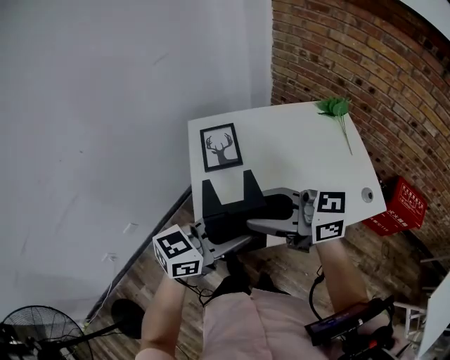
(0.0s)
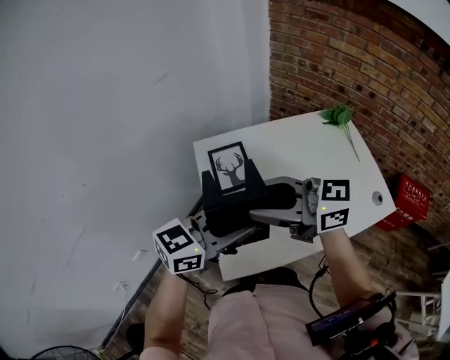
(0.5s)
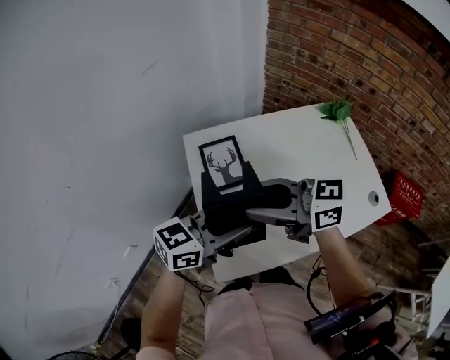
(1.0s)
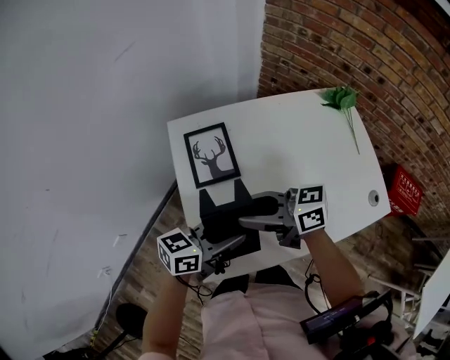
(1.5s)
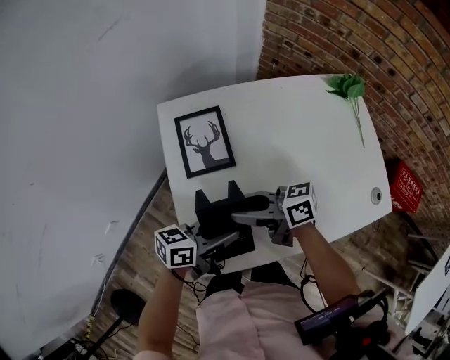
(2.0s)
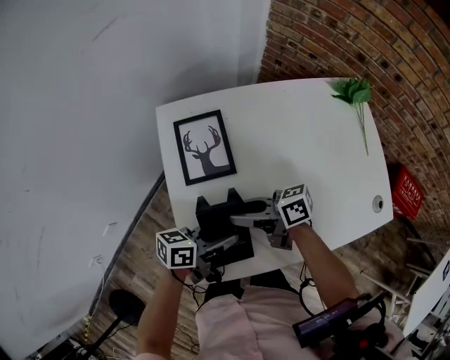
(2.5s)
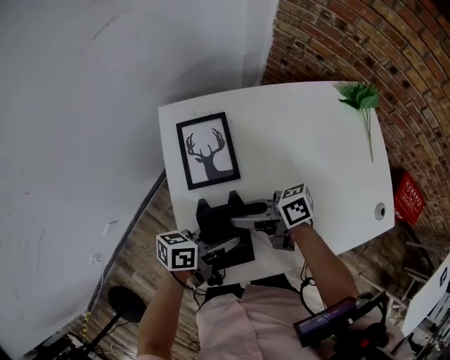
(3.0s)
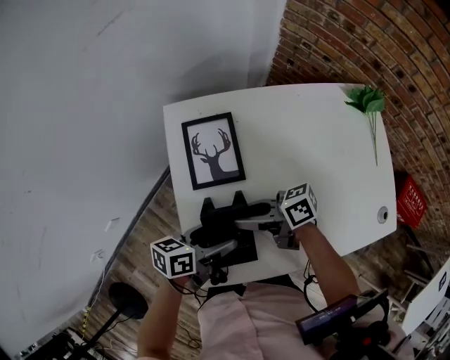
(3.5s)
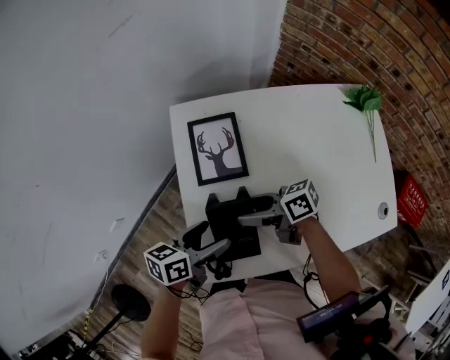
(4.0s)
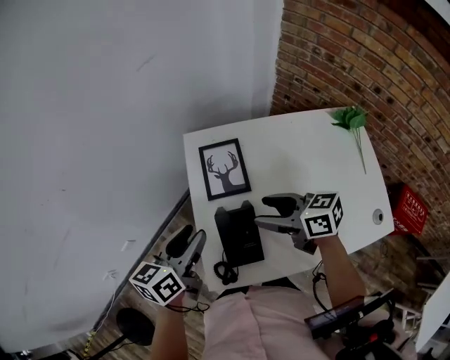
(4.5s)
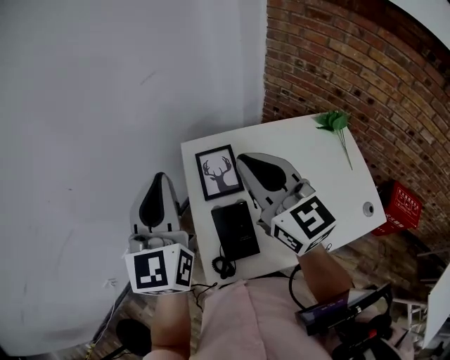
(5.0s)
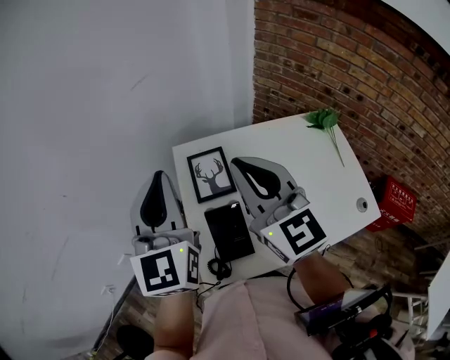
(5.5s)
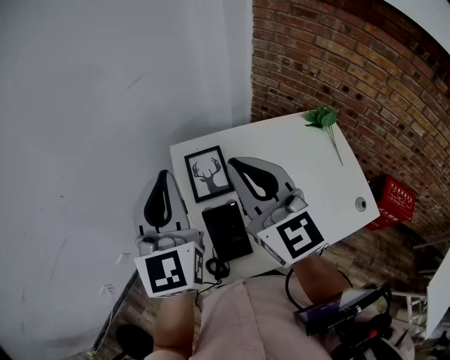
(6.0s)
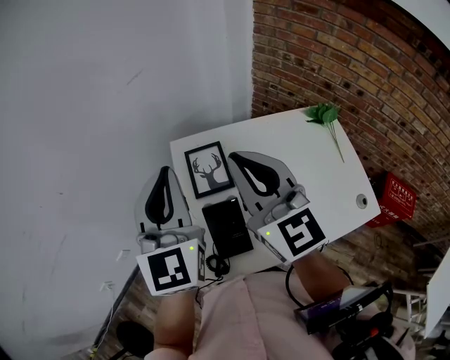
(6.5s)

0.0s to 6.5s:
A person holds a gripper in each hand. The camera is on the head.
0.0s to 2.0s: The grippers both shift downward by about 20 cm. The right gripper turns by about 30 degrees; the left gripper turns by some 30 degrees.
2.0s to 4.5s: The right gripper goes approximately 5 cm upward, rotates roughly 20 degrees, and opens. The left gripper changes place by approximately 20 cm, changes its angle by roughly 40 degrees, and opens, then closes again.
4.5s to 6.5s: Both grippers move upward, roughly 25 cm. The left gripper changes its angle by approximately 50 degrees, and closes its fingers. The right gripper rotates approximately 60 degrees, and closes its fingers.

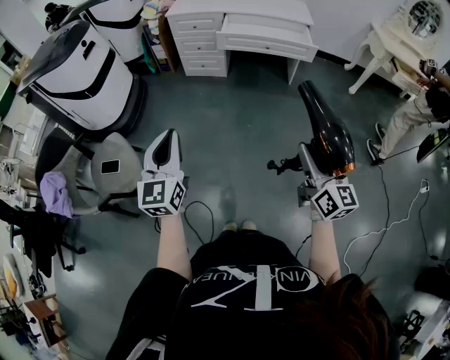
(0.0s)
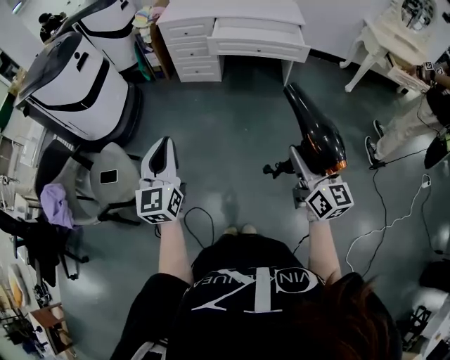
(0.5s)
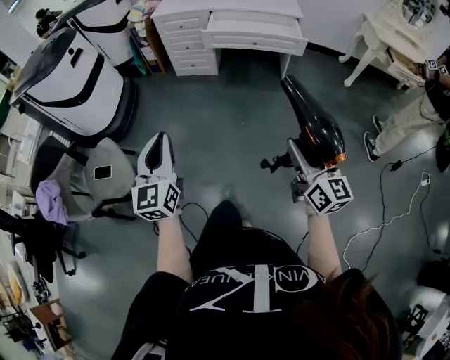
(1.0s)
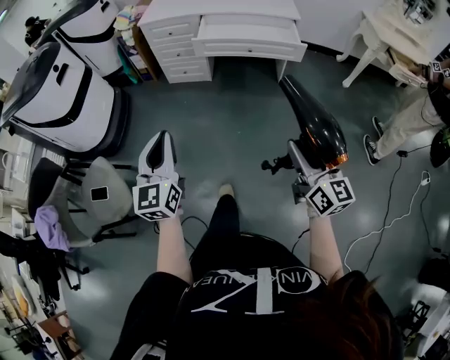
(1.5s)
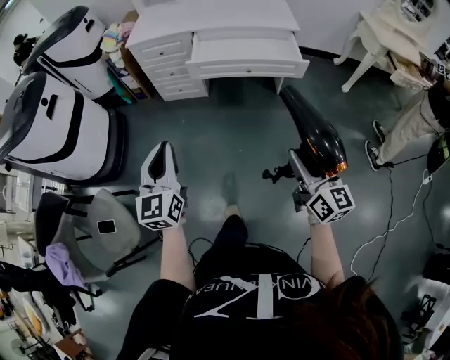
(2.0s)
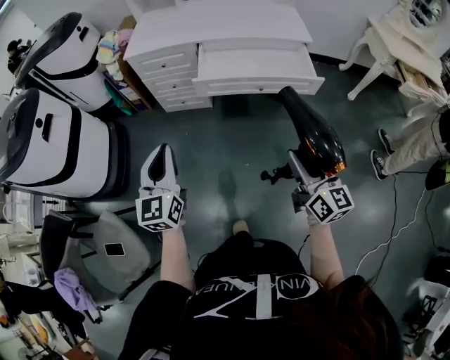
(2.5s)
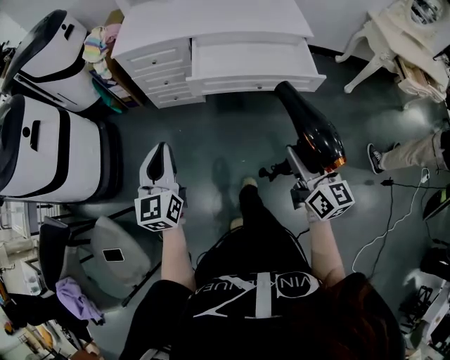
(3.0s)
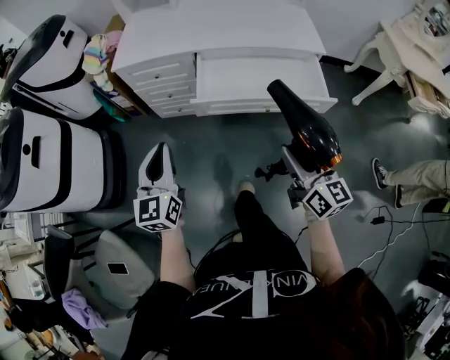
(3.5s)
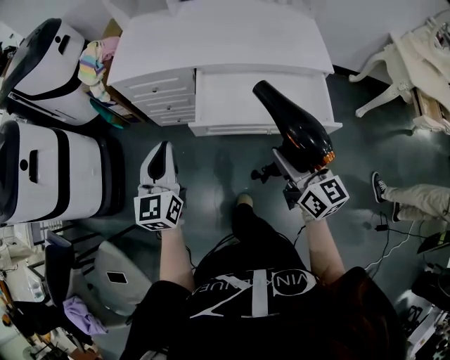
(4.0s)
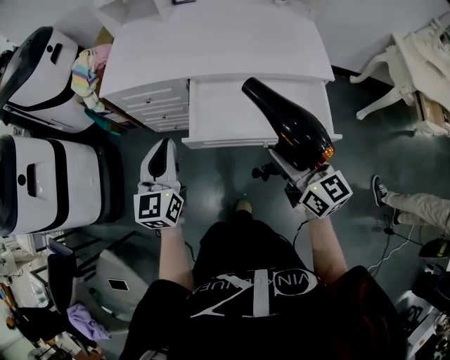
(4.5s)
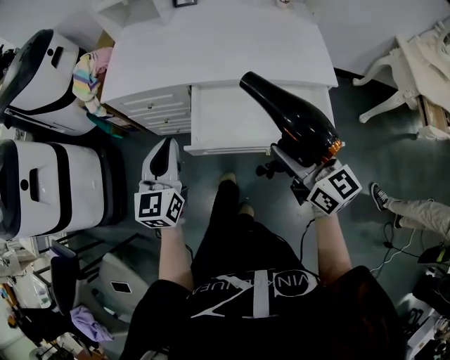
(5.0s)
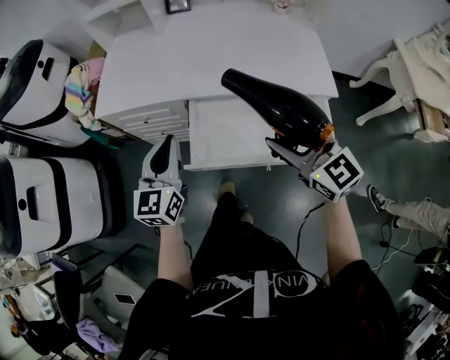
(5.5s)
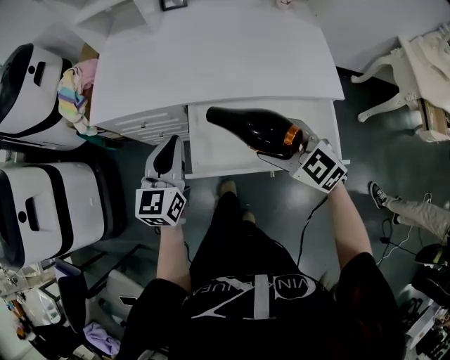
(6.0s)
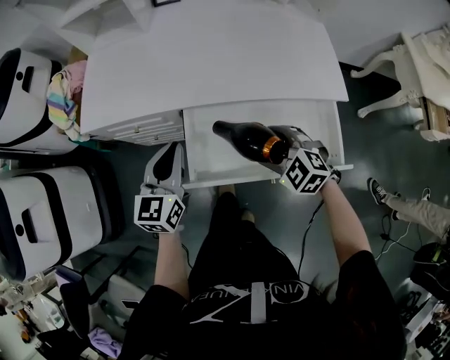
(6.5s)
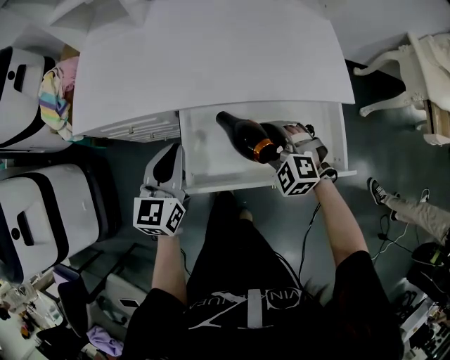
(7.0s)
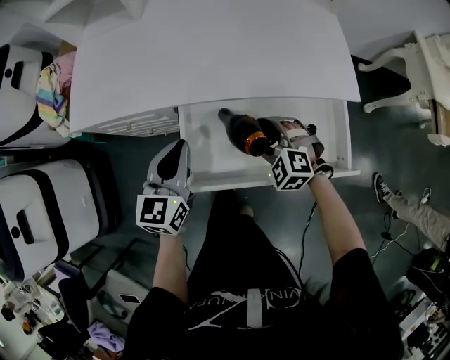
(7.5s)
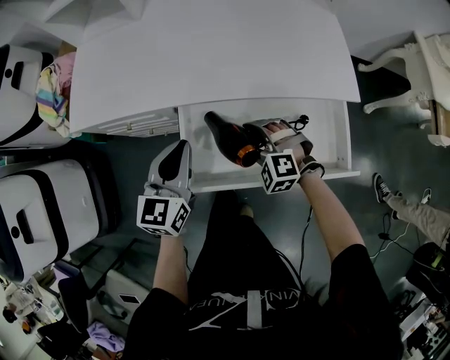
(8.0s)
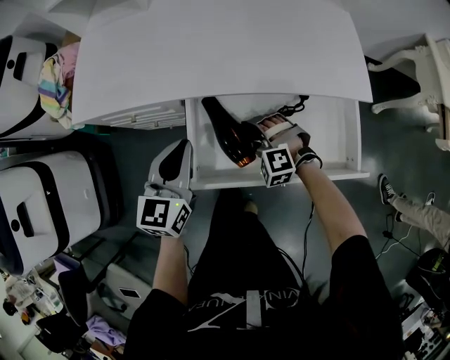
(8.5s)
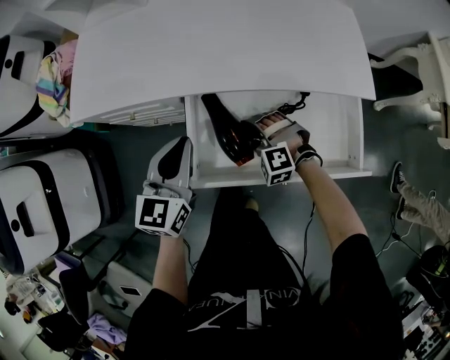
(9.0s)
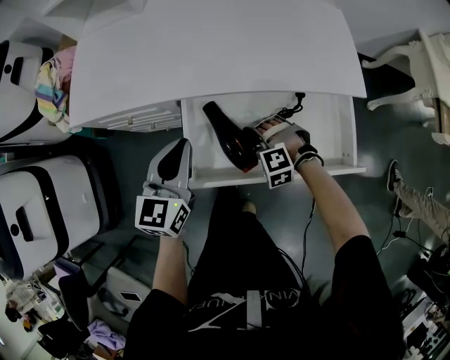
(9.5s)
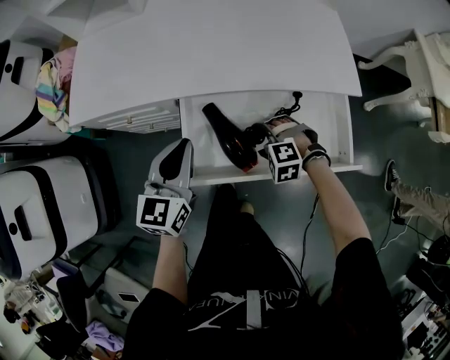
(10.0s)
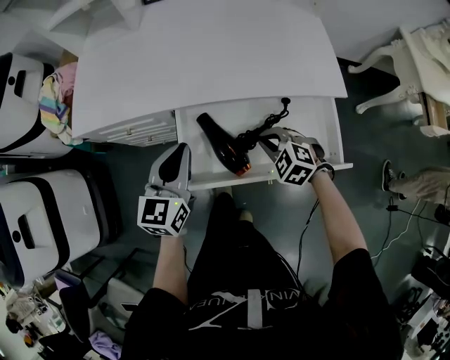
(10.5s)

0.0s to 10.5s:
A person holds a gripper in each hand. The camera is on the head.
0.0s to 2.0s: The two grippers go approximately 30 cm forward.
2.0s to 4.0s: The pair of grippers is taken forward, approximately 40 cm.
4.0s to 6.5s: The right gripper moves forward and downward, roughly 30 cm, and tilts its fingers approximately 40 degrees downward, while the left gripper moves forward and to the right, some 25 cm.
6.5s to 8.5s: The left gripper moves downward, about 5 cm; the right gripper shifts roughly 15 cm downward, and turns by about 30 degrees.
8.5s to 10.5s: The right gripper goes about 10 cm to the right and upward, turns by some 30 degrees, and closes its fingers.

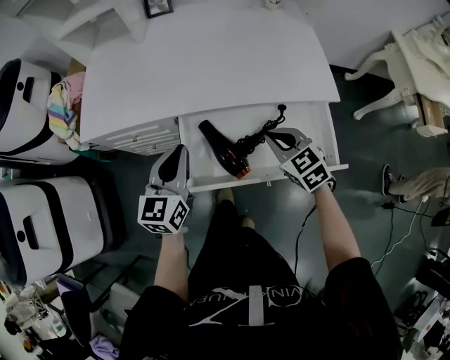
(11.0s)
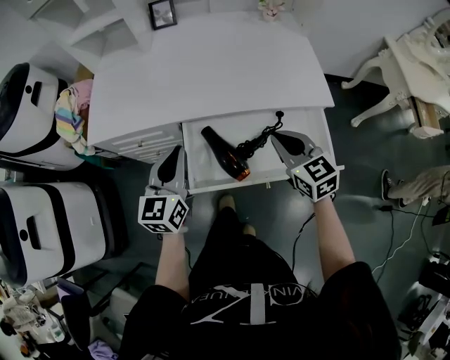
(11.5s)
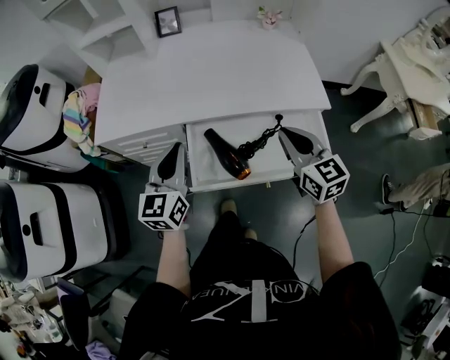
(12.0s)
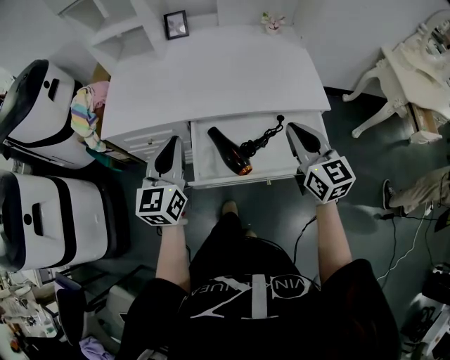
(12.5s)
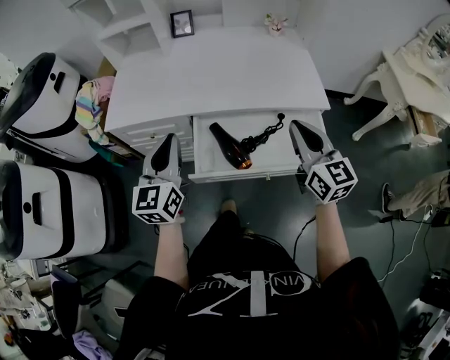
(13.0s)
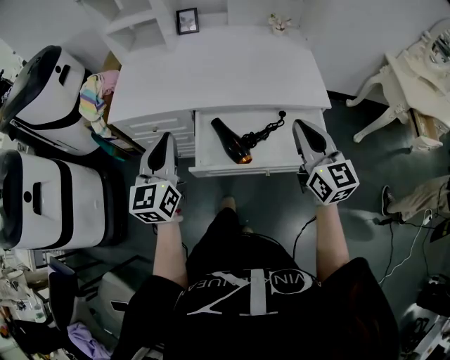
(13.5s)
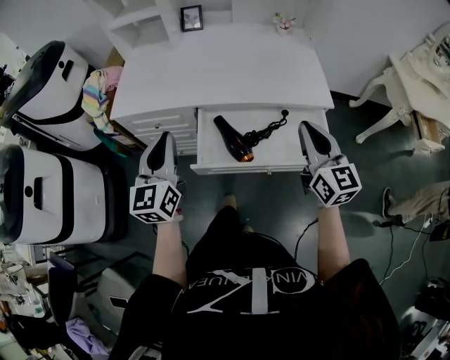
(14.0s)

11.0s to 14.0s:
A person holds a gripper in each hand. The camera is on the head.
11.0s to 12.5s: The right gripper goes roughly 15 cm upward, and tilts its fingers approximately 30 degrees upward; the left gripper goes roughly 10 cm upward and backward.
12.5s to 14.0s: The two grippers go approximately 5 cm backward.

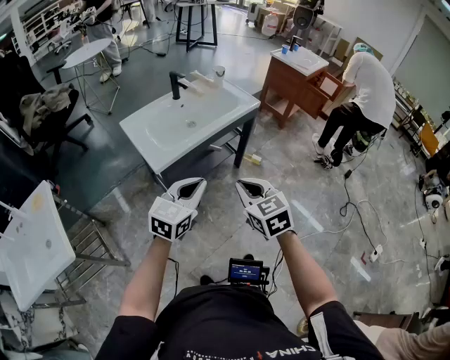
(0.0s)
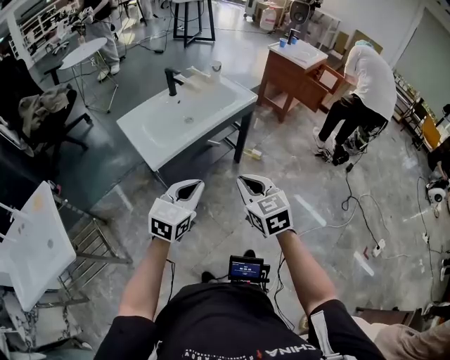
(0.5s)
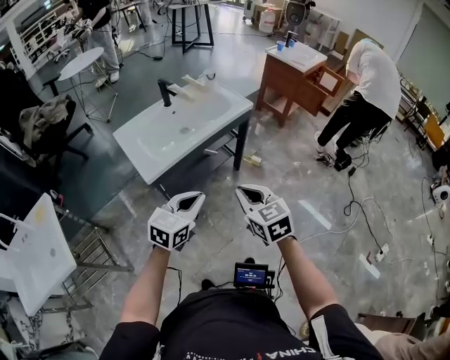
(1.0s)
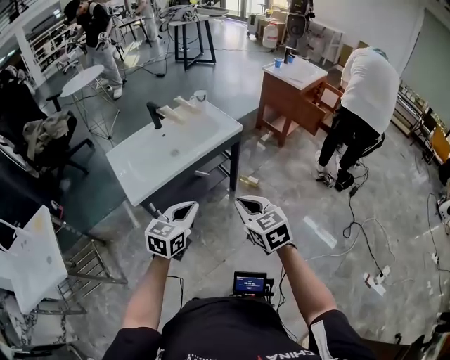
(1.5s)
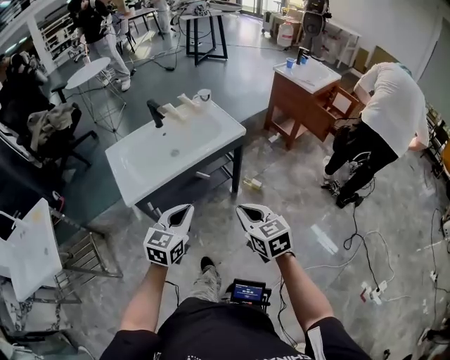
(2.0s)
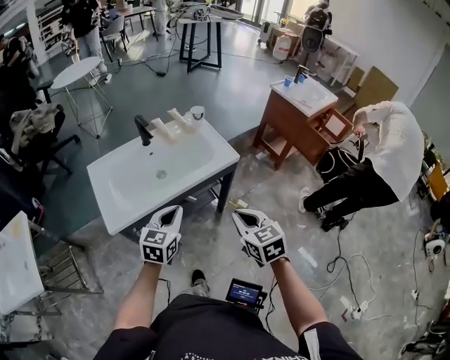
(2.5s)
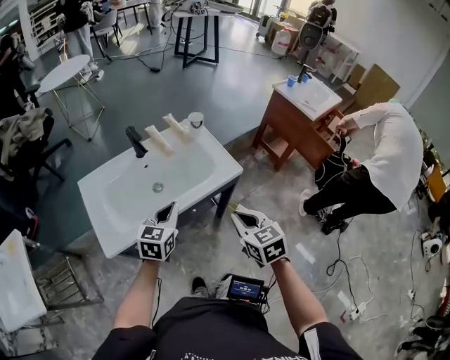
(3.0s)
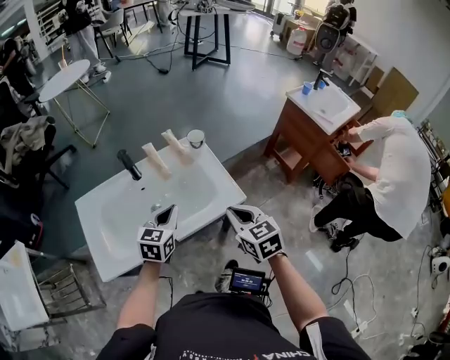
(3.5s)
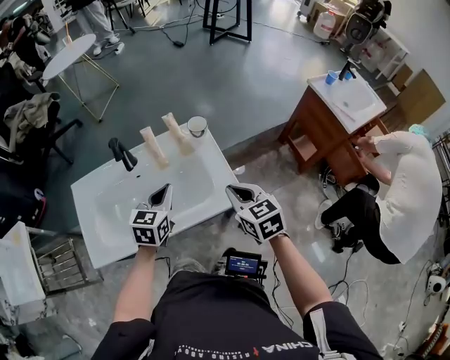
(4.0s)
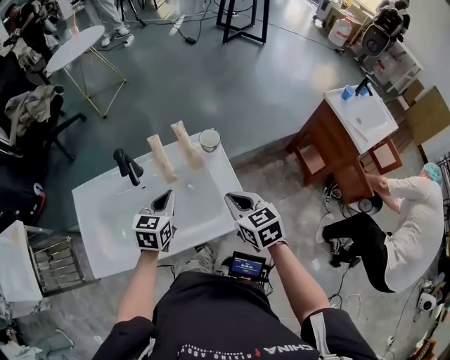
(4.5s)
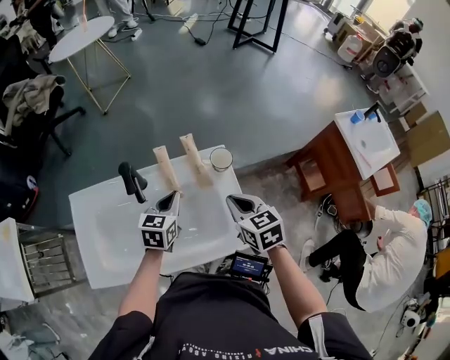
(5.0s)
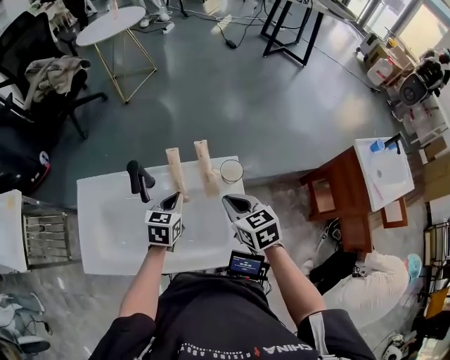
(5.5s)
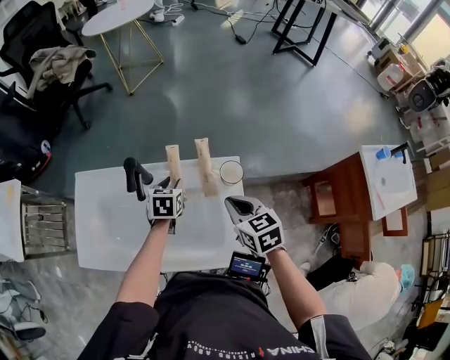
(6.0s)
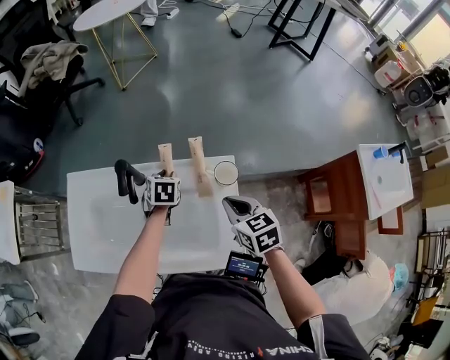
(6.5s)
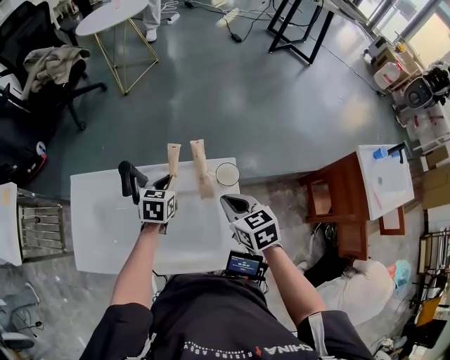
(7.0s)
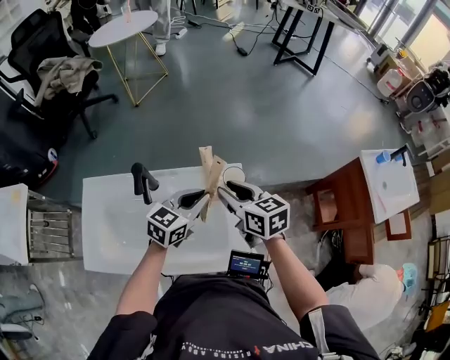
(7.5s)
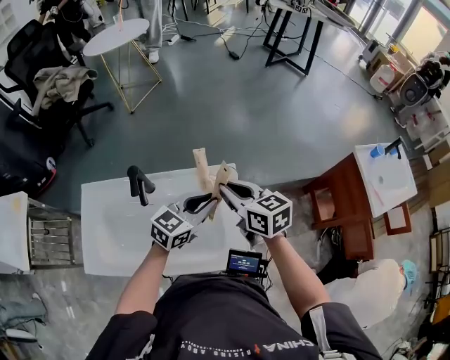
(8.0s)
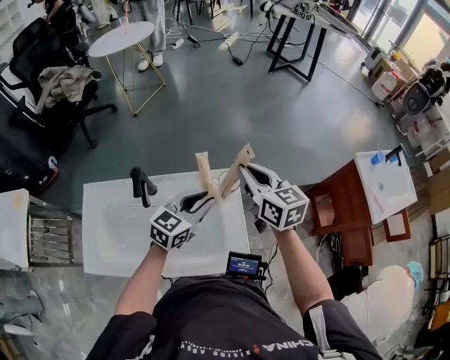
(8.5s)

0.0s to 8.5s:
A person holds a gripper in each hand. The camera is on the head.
0.0s to 2.0s: The grippers both shift to the right and forward by some 20 cm.
2.0s to 4.0s: The pair of grippers is taken forward, about 50 cm. The left gripper changes its angle by roughly 20 degrees.
4.0s to 6.5s: The right gripper moves about 20 cm, and swivels roughly 20 degrees, while the left gripper changes place by roughly 30 cm, changes its angle by some 40 degrees, and opens up.
6.5s to 8.5s: The right gripper shifts roughly 15 cm upward, turns by roughly 30 degrees, and opens and closes again. Meanwhile the left gripper moves about 25 cm, and angles its fingers upward, by approximately 40 degrees.
